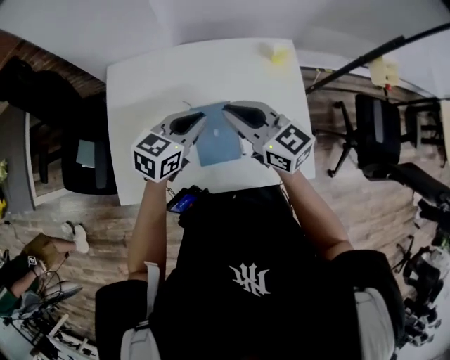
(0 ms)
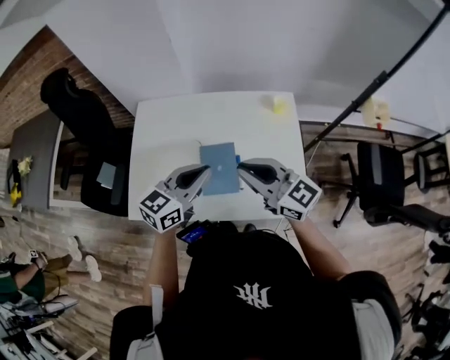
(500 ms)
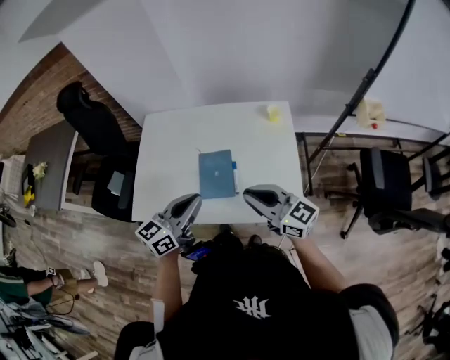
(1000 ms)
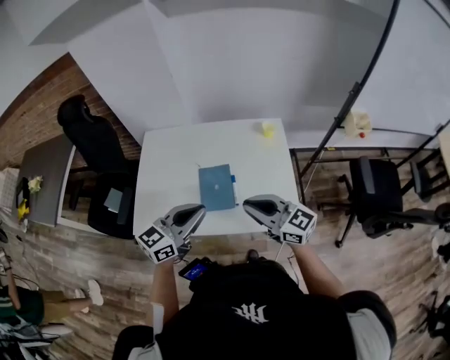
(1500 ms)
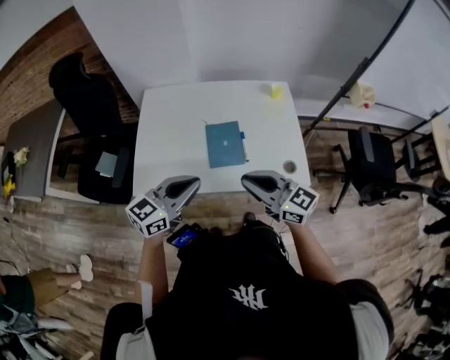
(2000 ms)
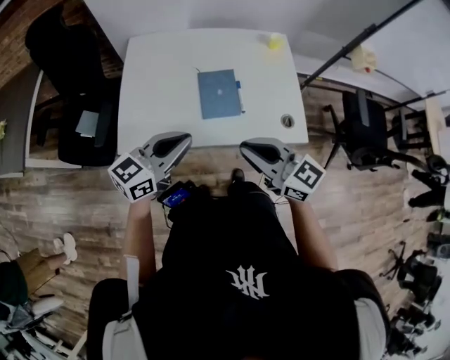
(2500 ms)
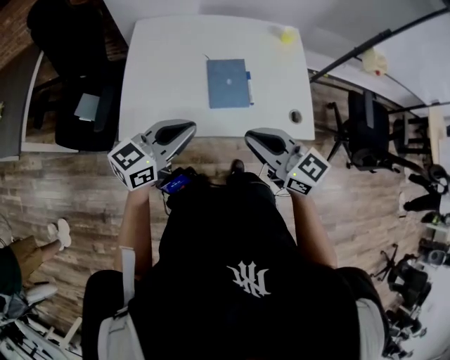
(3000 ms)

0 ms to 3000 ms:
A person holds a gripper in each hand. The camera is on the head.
0 ms to 1500 ms: The right gripper travels backward by approximately 20 cm; the left gripper heads backward and upward, covering some 25 cm, and swivels about 20 degrees.
1500 ms to 3000 ms: The left gripper travels to the left and downward by approximately 15 cm, while the right gripper goes some 15 cm to the left and backward.

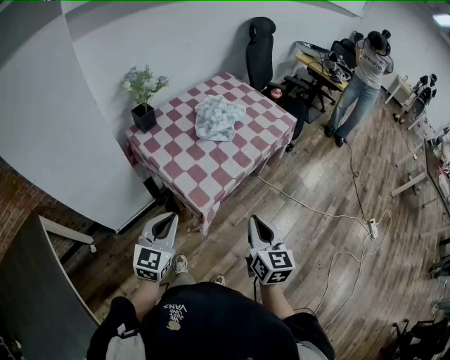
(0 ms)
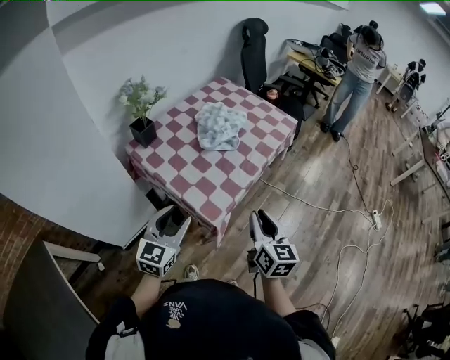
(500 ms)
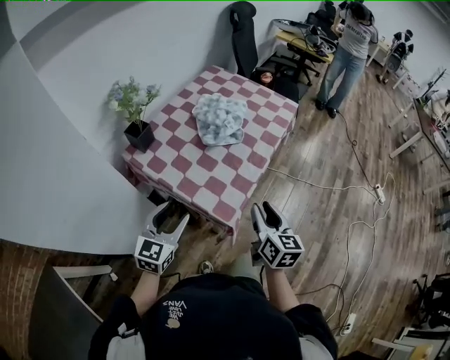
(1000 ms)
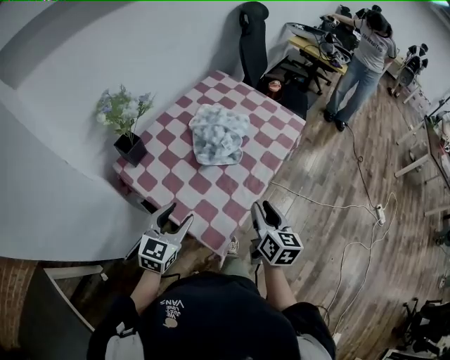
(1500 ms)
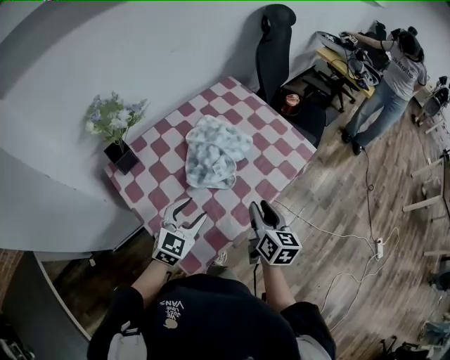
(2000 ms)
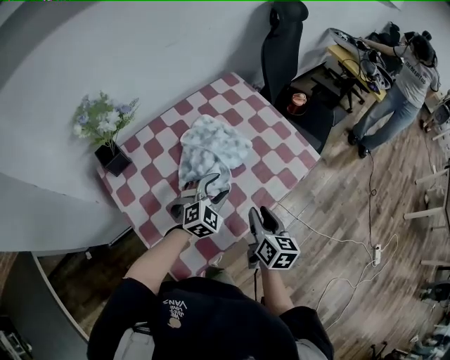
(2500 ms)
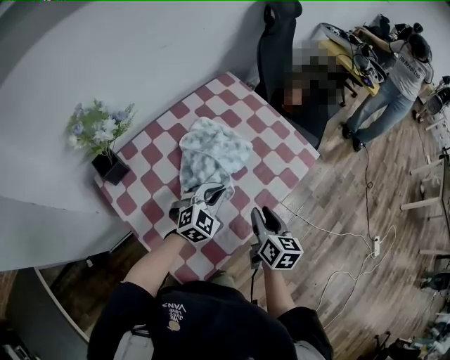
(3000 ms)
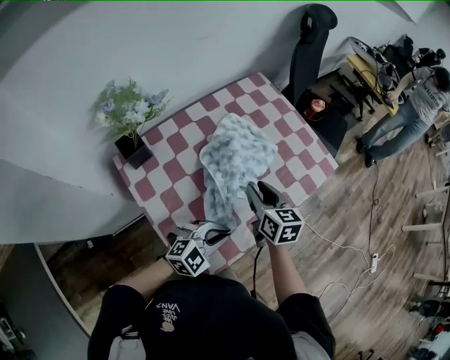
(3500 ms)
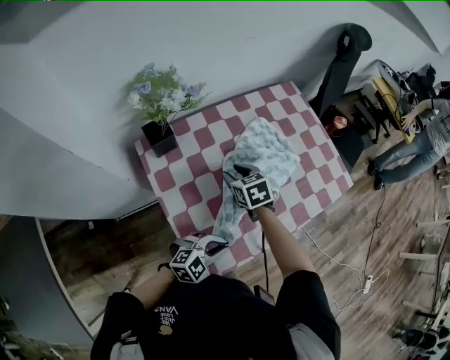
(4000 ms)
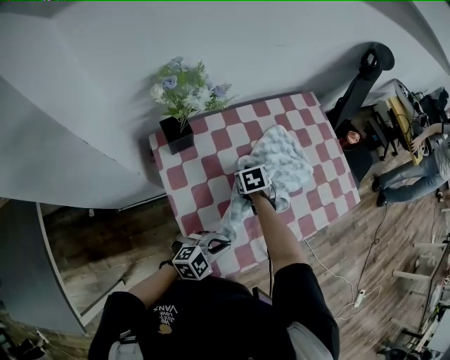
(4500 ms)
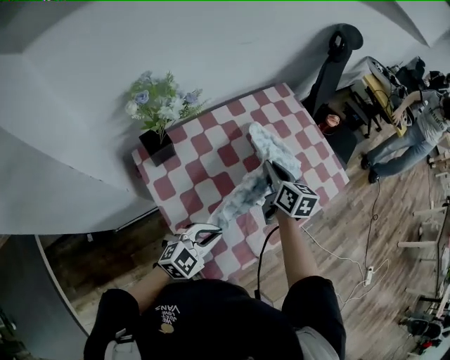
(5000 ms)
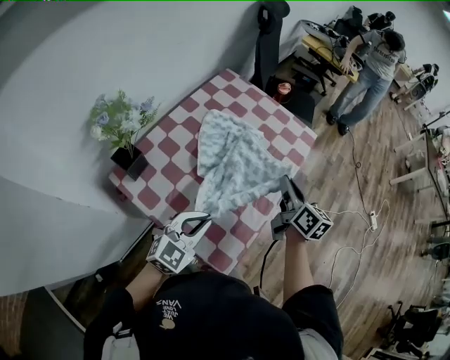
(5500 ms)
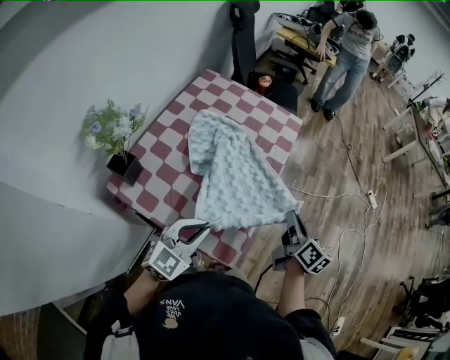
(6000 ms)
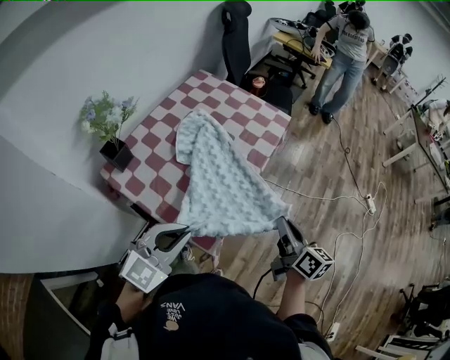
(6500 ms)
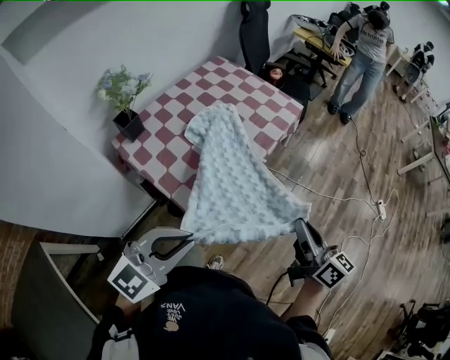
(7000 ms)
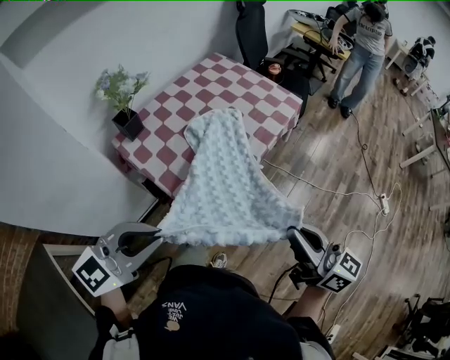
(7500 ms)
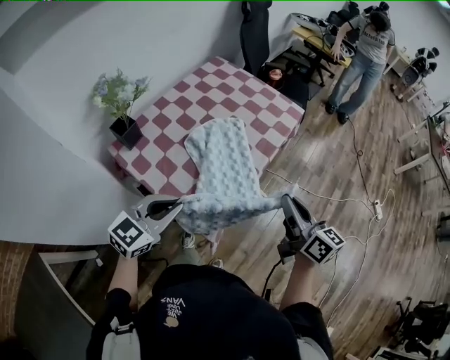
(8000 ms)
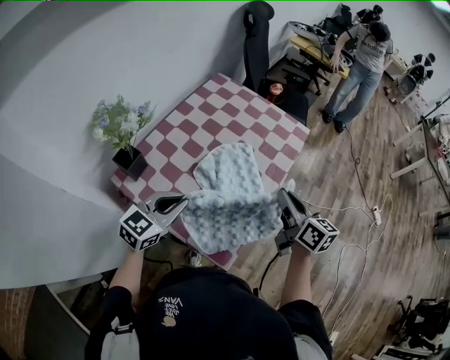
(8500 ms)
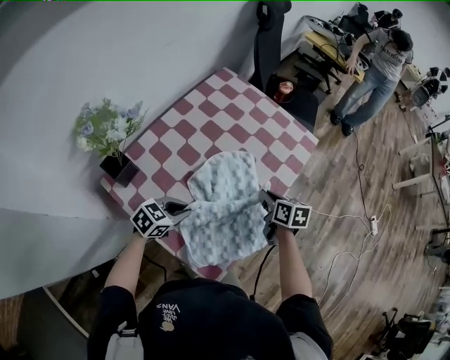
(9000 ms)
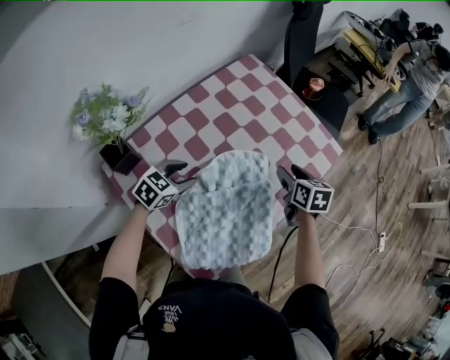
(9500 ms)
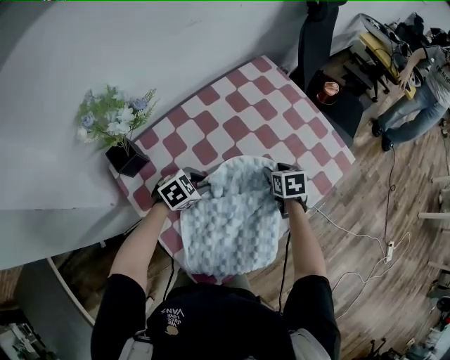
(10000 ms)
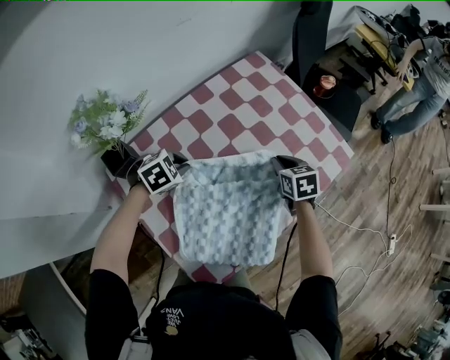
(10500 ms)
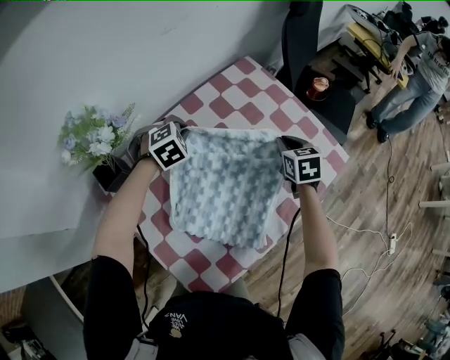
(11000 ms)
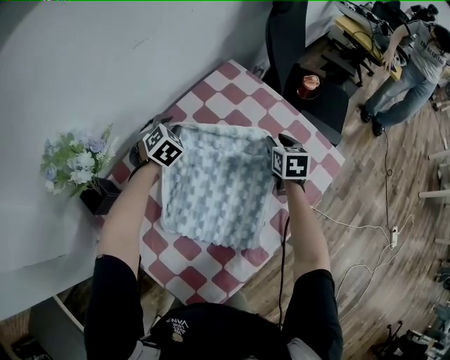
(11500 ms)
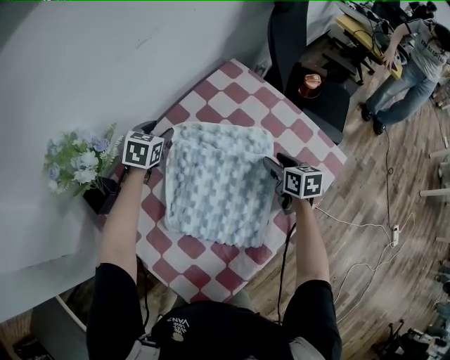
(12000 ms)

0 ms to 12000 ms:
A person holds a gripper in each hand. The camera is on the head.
0 ms to 2000 ms: Both grippers travel together forward, approximately 35 cm. The right gripper opens up. Meanwhile the left gripper opens.
2000 ms to 4000 ms: The right gripper is displaced to the left by about 25 cm, and changes its angle by about 50 degrees. The left gripper moves backward and downward, about 10 cm, rotates some 20 degrees, and closes its fingers.
4000 ms to 6000 ms: The right gripper shifts by some 40 cm, tilts its fingers approximately 30 degrees upward, and closes up, while the left gripper is displaced upward by about 15 cm, and rotates some 20 degrees.
6000 ms to 8000 ms: The right gripper heads upward, covering about 10 cm, moves roughly 20 cm backward and comes back, and swivels about 30 degrees, while the left gripper goes backward and returns, about 20 cm each way.
8000 ms to 10000 ms: The right gripper travels forward, downward and to the left by roughly 50 cm, points its fingers roughly 50 degrees further downward, and opens its fingers. The left gripper shifts roughly 35 cm forward and downward, angles its fingers downward, by some 40 degrees, and opens its fingers.
10000 ms to 12000 ms: The left gripper goes about 25 cm forward, changes its angle by some 40 degrees, and opens up; the right gripper is displaced forward by roughly 10 cm, turns by approximately 20 degrees, and closes, then reopens.

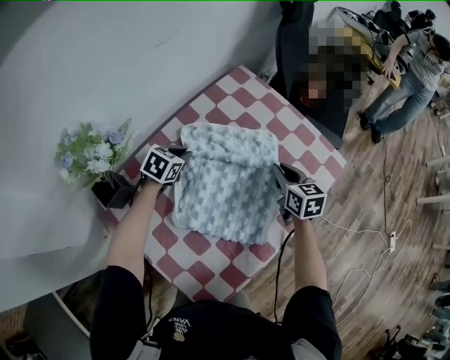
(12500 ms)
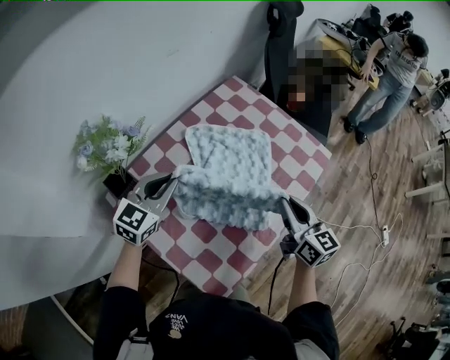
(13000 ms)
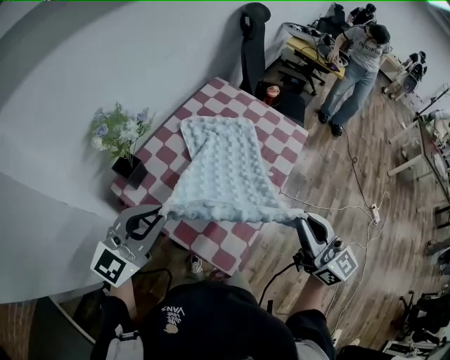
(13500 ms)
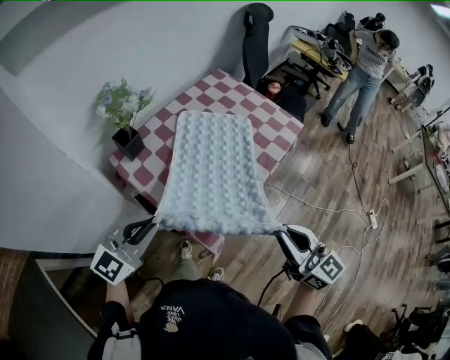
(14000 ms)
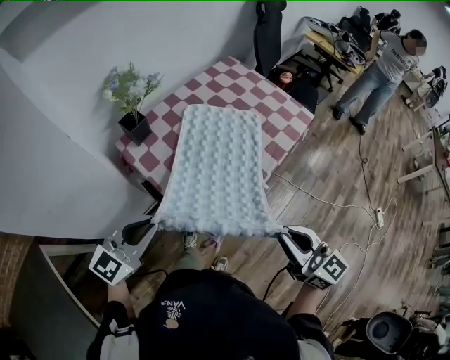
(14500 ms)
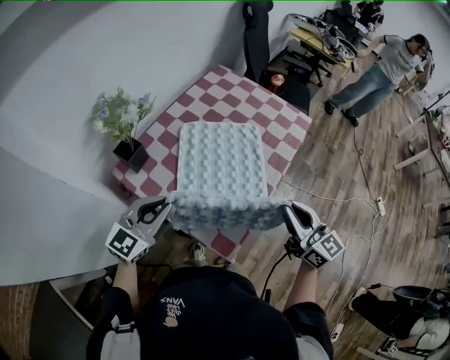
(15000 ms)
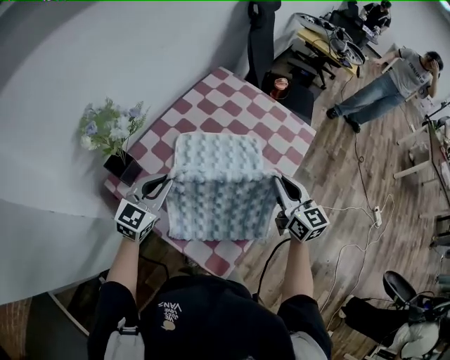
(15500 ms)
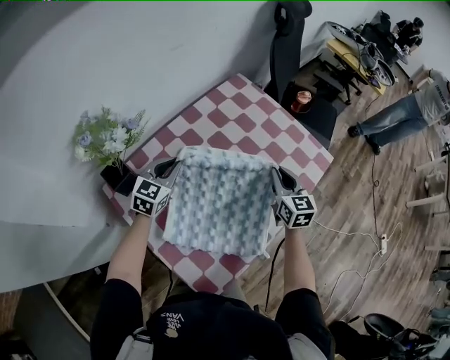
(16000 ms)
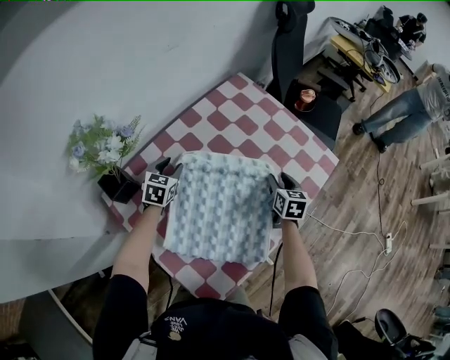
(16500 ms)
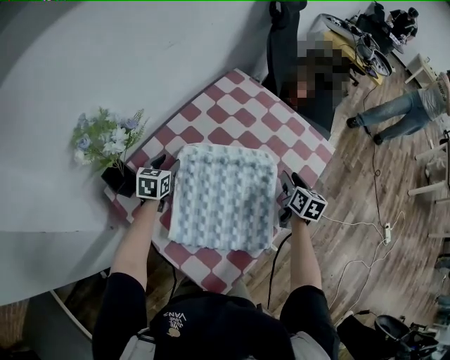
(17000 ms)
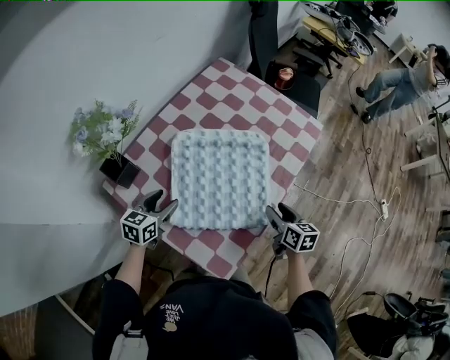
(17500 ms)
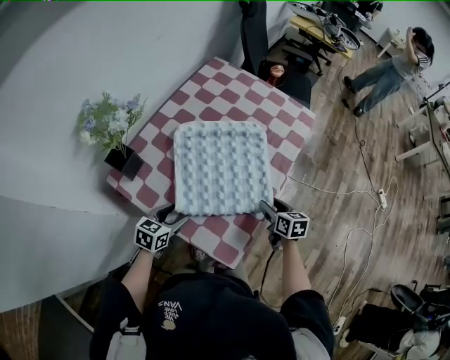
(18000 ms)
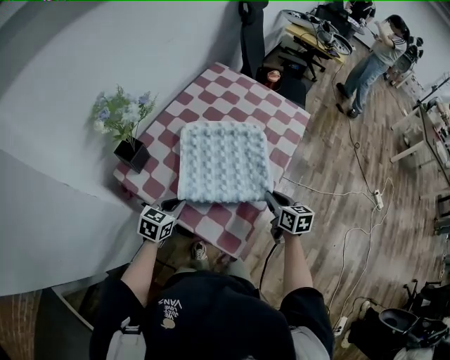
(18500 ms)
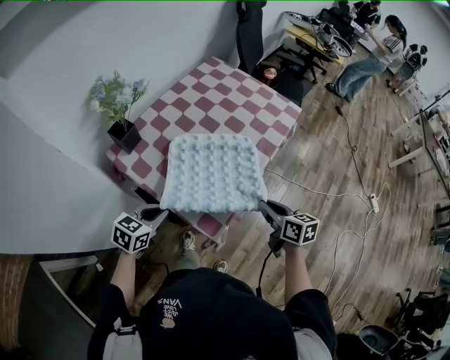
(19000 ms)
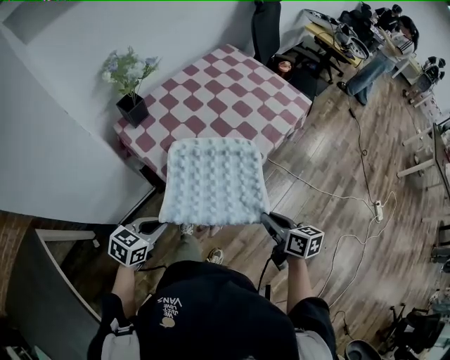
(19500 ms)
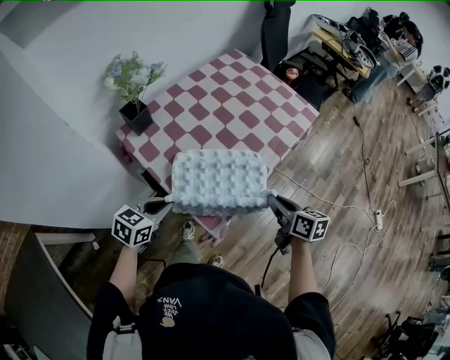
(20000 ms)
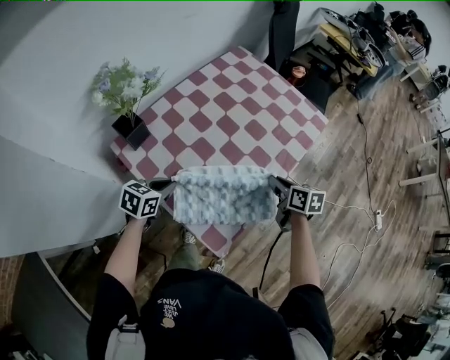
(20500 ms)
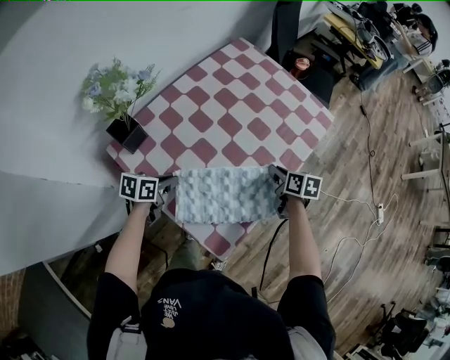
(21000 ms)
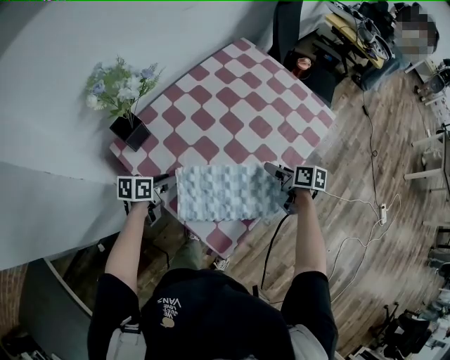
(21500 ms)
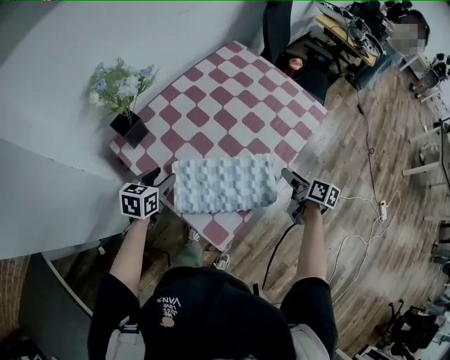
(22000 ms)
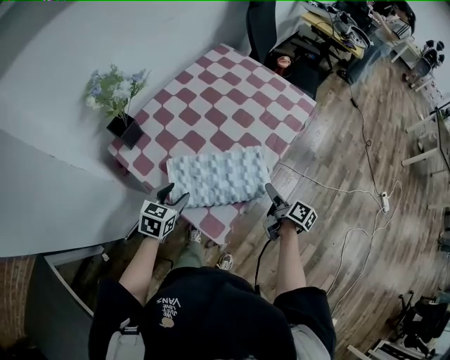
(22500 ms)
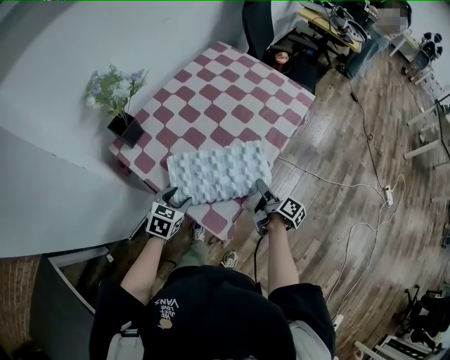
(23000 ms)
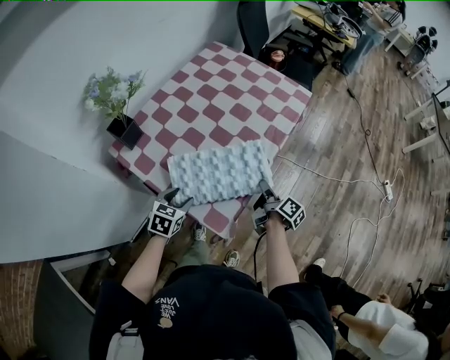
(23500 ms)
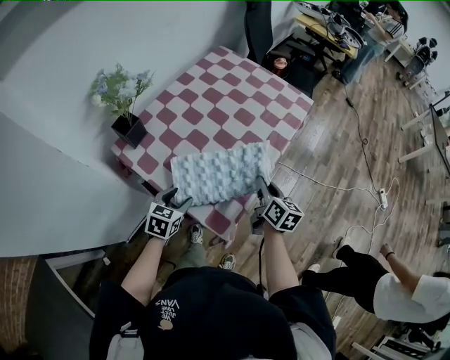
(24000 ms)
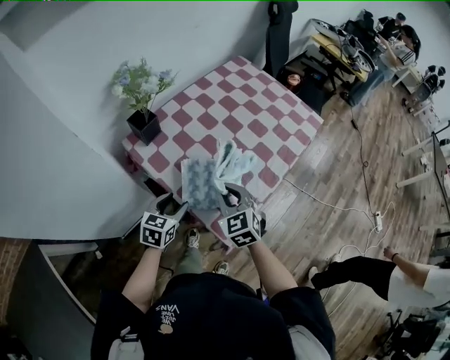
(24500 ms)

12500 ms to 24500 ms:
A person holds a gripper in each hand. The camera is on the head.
12500 ms to 14500 ms: Both grippers are carried backward, roughly 50 cm. Both grippers travel together upward, some 20 cm. The right gripper changes its angle by approximately 30 degrees, while the left gripper angles its fingers upward, by approximately 40 degrees.
14500 ms to 16500 ms: The two grippers travel together, forward, approximately 50 cm. The two grippers go about 25 cm downward. The right gripper angles its fingers downward, by about 30 degrees, and opens up; the left gripper changes its angle by about 40 degrees, and opens its fingers.
16500 ms to 18500 ms: Both grippers move backward, roughly 30 cm. The right gripper closes up. The left gripper turns by about 30 degrees, and closes up.
18500 ms to 20500 ms: The right gripper moves some 20 cm backward and comes back. The left gripper reaches some 25 cm backward, then returns.
20500 ms to 22500 ms: The left gripper heads to the right and backward, covering approximately 5 cm, and opens up. The right gripper shifts roughly 10 cm backward and to the right, rotates approximately 40 degrees, and opens.
22500 ms to 24500 ms: The left gripper goes some 5 cm to the left and backward, while the right gripper shifts roughly 30 cm to the left and upward, rolls counterclockwise, seen from behind, by roughly 90 degrees, and closes.
